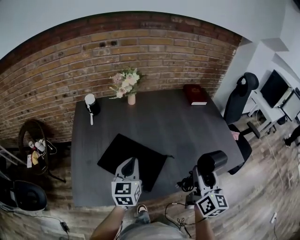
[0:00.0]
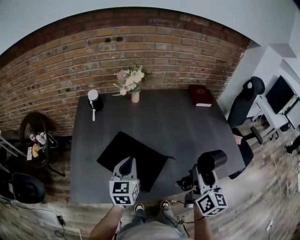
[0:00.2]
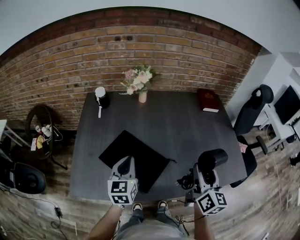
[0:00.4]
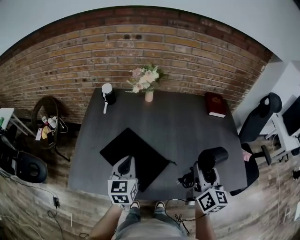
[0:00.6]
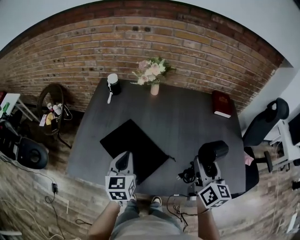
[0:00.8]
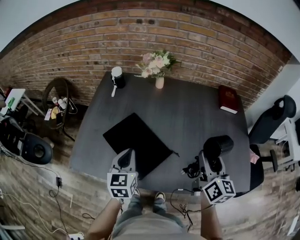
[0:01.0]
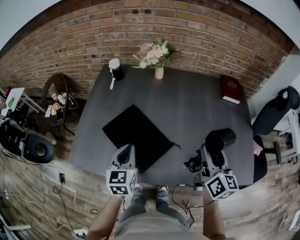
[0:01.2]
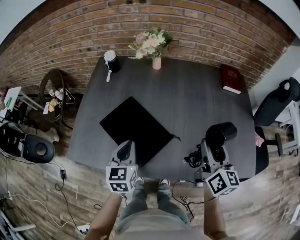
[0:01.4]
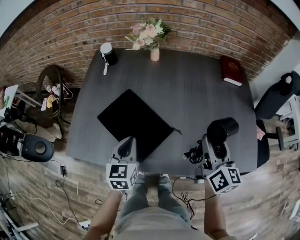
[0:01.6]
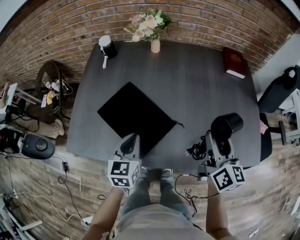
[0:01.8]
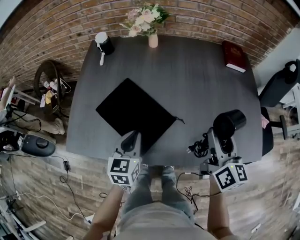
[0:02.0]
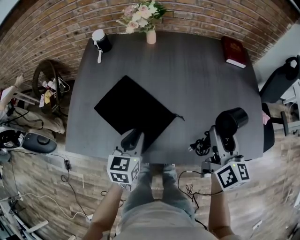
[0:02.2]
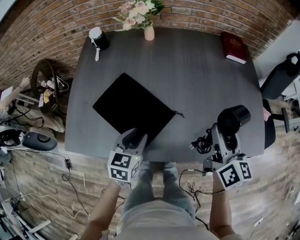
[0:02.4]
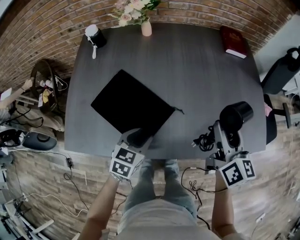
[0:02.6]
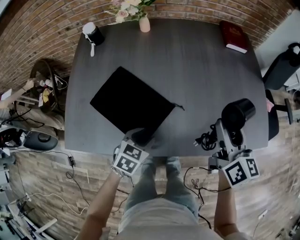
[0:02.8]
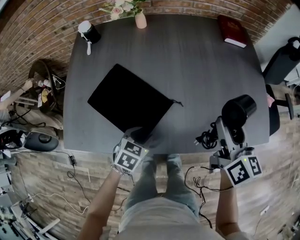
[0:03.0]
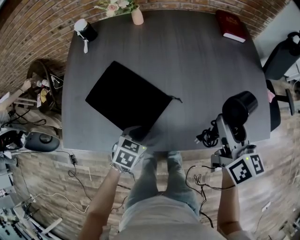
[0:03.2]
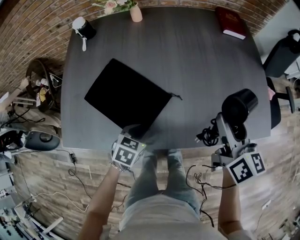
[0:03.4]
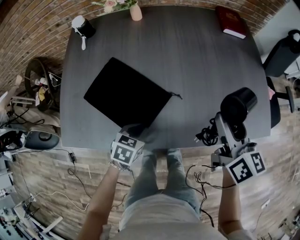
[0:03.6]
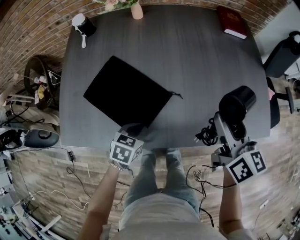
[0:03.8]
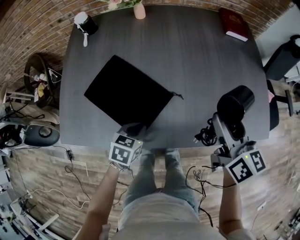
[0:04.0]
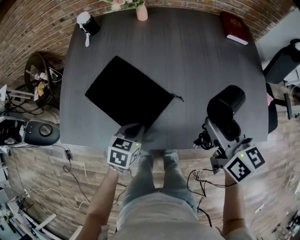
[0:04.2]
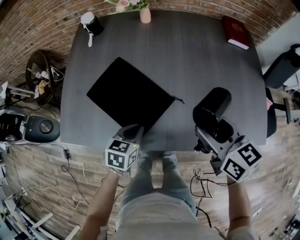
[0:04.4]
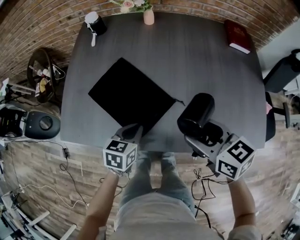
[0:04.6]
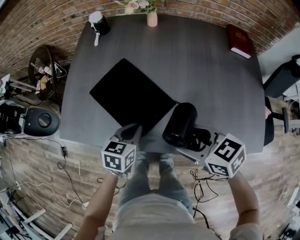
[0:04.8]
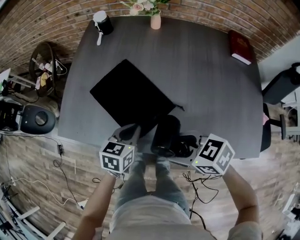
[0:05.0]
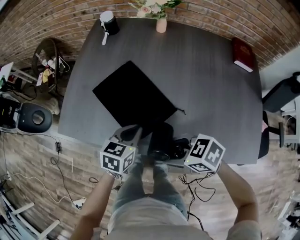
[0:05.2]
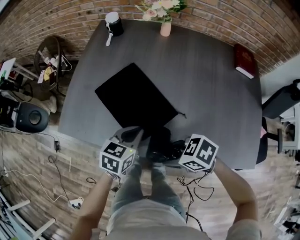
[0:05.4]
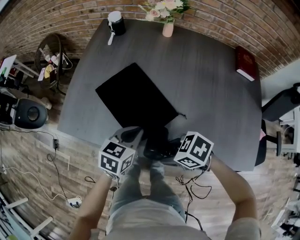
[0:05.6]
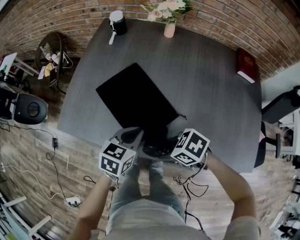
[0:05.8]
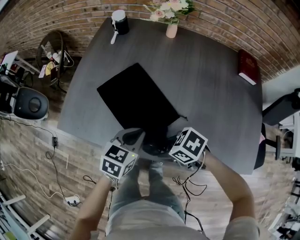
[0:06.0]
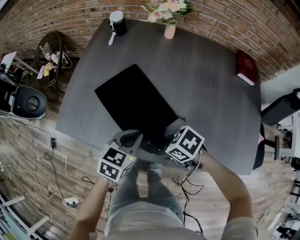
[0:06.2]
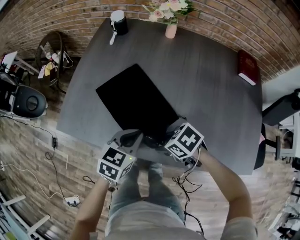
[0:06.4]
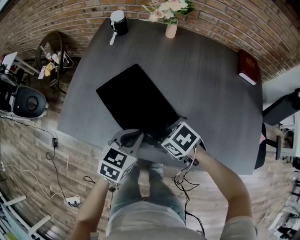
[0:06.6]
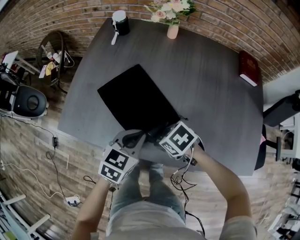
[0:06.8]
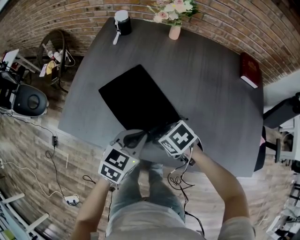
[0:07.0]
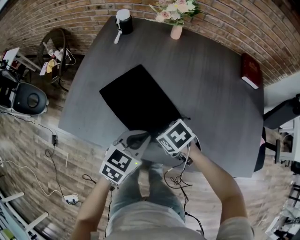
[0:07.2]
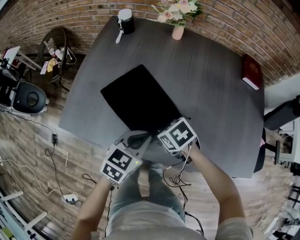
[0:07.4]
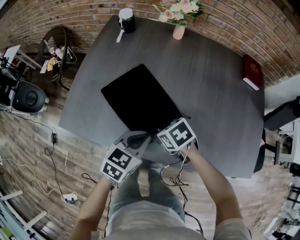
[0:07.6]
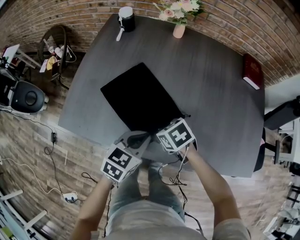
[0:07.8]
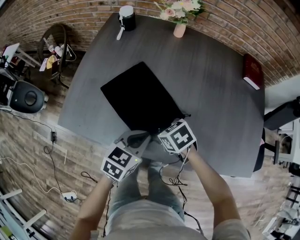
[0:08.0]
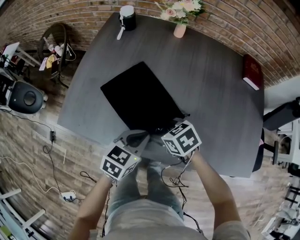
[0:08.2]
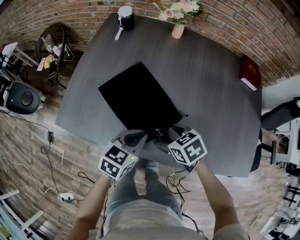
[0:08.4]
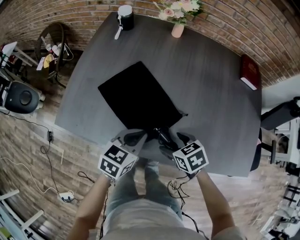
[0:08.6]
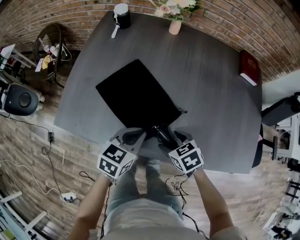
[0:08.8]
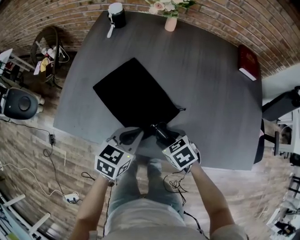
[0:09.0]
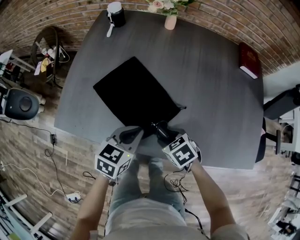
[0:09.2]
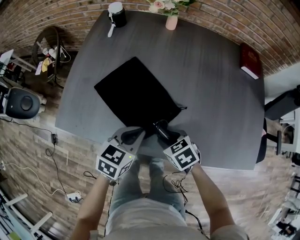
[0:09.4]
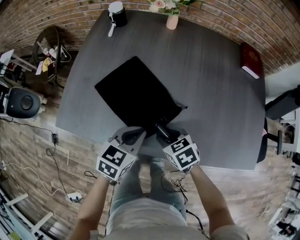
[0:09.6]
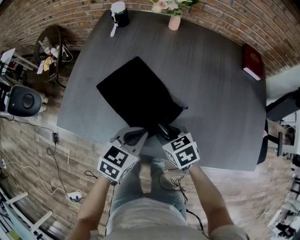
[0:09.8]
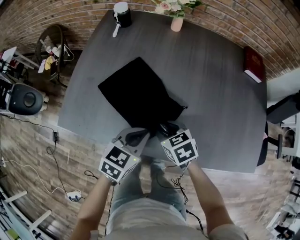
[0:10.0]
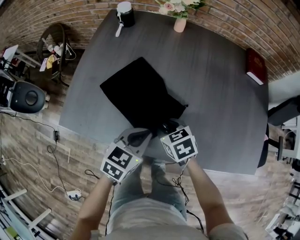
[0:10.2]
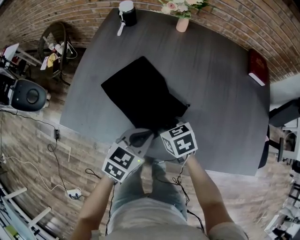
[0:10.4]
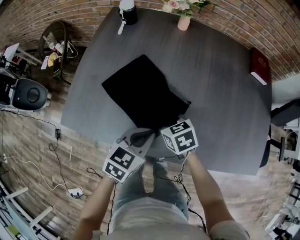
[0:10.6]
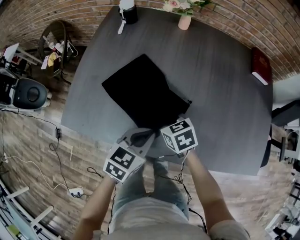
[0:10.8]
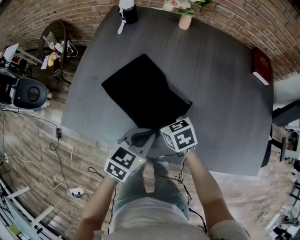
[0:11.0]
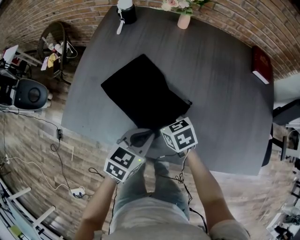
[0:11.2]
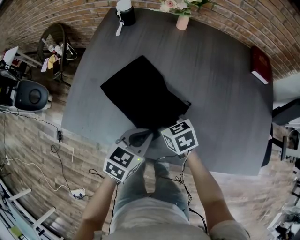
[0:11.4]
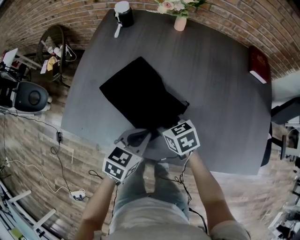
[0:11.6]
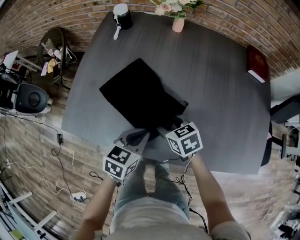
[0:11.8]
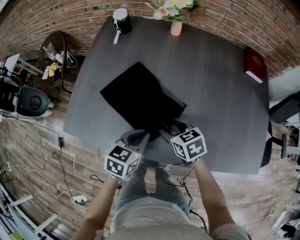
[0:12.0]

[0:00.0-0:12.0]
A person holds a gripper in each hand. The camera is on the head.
0:00.0 to 0:01.6: The left gripper travels downward by roughly 5 cm, and swivels roughly 20 degrees. The right gripper goes about 15 cm forward, to the right and downward, and rotates roughly 20 degrees.
0:01.6 to 0:03.0: The left gripper heads downward and to the right, covering some 15 cm, tilts its fingers about 30 degrees downward, and opens.
0:03.0 to 0:04.4: The right gripper heads to the left, covering roughly 10 cm, and turns by about 30 degrees. Meanwhile the left gripper rotates roughly 20 degrees, and closes its fingers.
0:04.4 to 0:06.0: The right gripper heads downward, covering roughly 15 cm, and swivels about 70 degrees, while the left gripper is displaced upward by roughly 5 cm.
0:06.0 to 0:07.6: The right gripper moves about 10 cm, and rotates about 20 degrees.
0:07.6 to 0:09.0: The right gripper goes some 5 cm backward.
0:09.0 to 0:10.4: The right gripper shifts approximately 10 cm forward.
0:10.4 to 0:12.0: The grippers stay close to where they were, moving slightly.

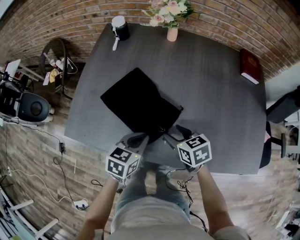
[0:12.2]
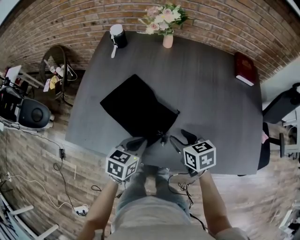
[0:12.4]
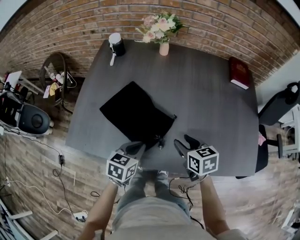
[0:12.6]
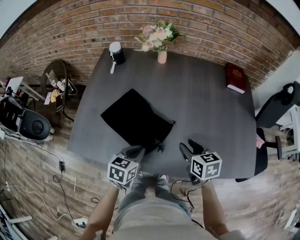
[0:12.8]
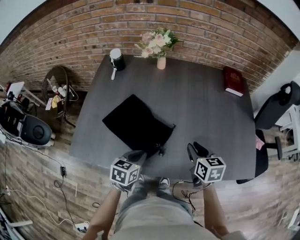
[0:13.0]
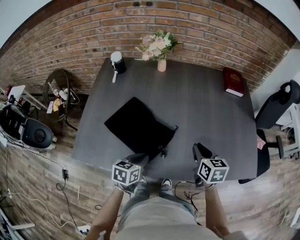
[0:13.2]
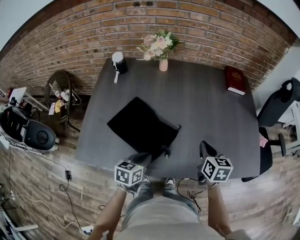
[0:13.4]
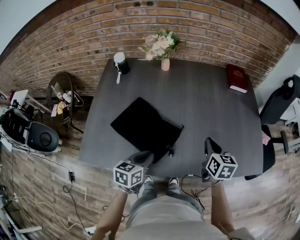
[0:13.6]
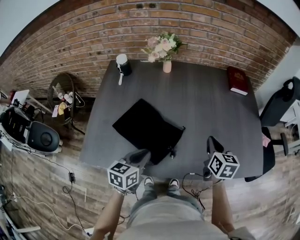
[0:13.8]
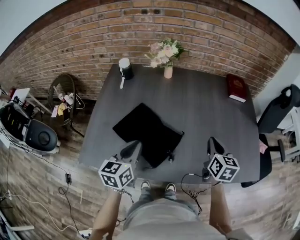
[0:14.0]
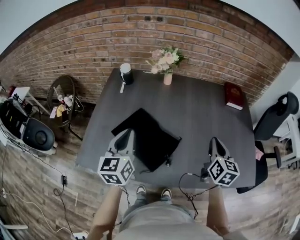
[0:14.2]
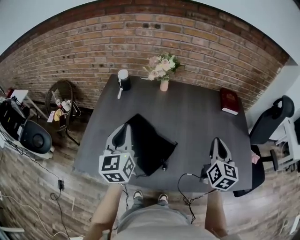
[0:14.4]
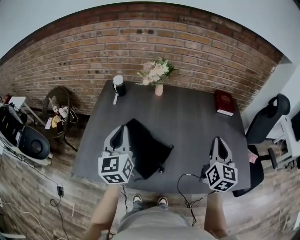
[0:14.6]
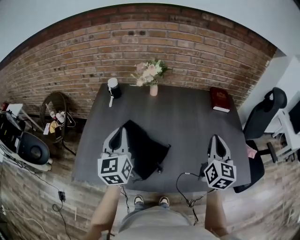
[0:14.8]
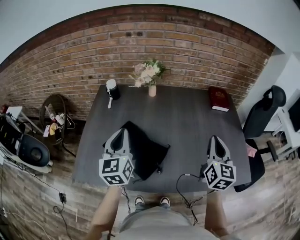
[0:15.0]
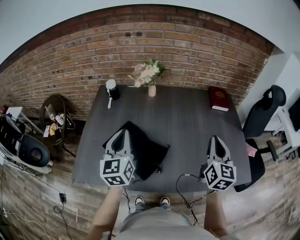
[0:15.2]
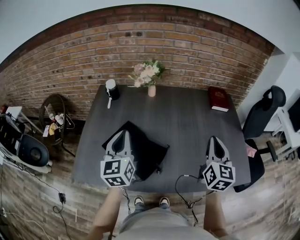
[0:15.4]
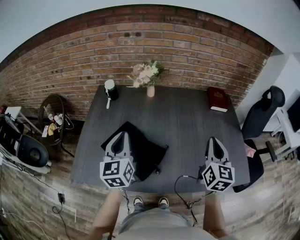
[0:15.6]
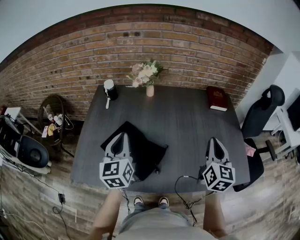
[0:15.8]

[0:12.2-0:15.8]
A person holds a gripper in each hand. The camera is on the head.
0:12.2 to 0:14.0: The right gripper goes some 20 cm to the right and upward, swivels approximately 50 degrees, and closes its fingers. The left gripper is displaced upward and to the left by approximately 15 cm, and rotates some 20 degrees.
0:14.0 to 0:15.8: The left gripper moves upward and forward, some 10 cm, and turns by approximately 20 degrees. The right gripper goes some 10 cm upward, and rotates roughly 20 degrees.

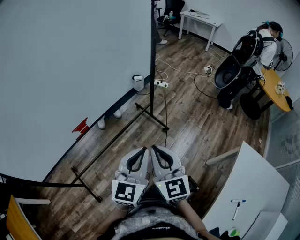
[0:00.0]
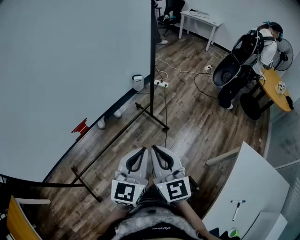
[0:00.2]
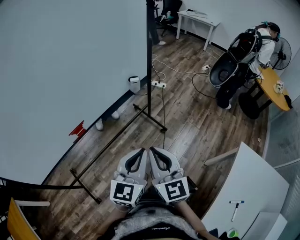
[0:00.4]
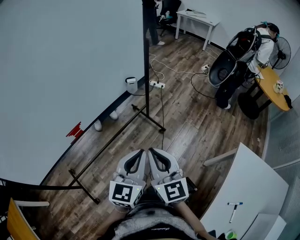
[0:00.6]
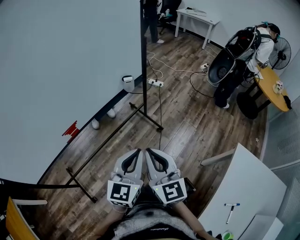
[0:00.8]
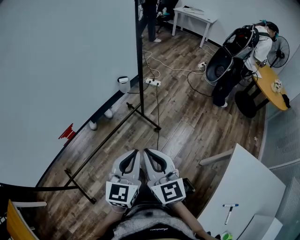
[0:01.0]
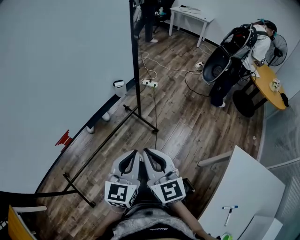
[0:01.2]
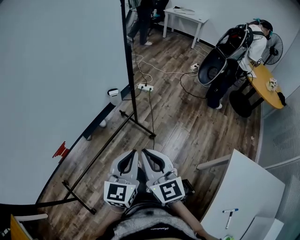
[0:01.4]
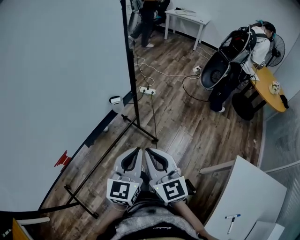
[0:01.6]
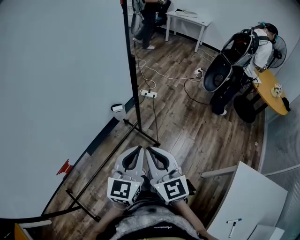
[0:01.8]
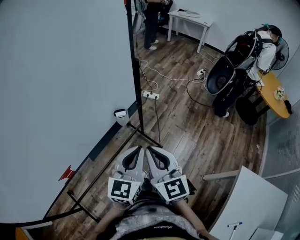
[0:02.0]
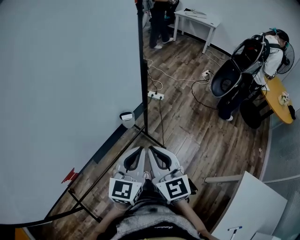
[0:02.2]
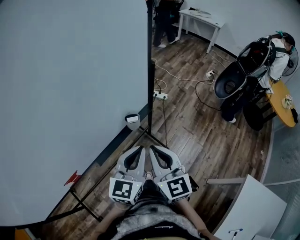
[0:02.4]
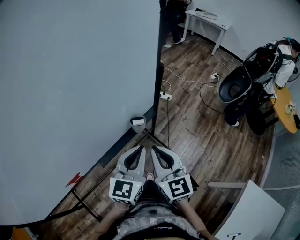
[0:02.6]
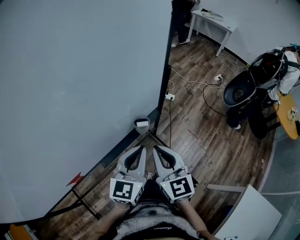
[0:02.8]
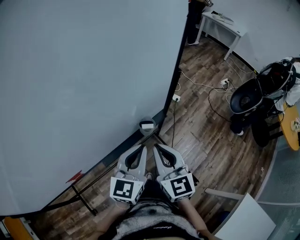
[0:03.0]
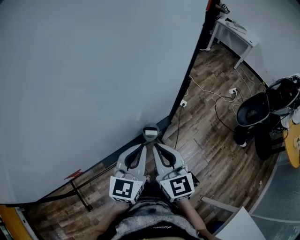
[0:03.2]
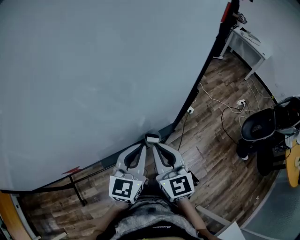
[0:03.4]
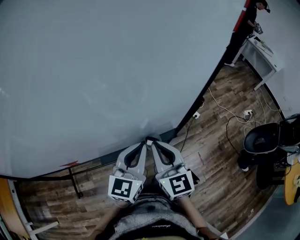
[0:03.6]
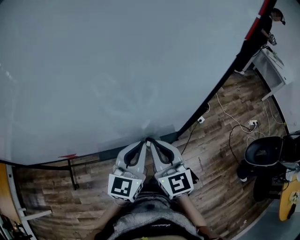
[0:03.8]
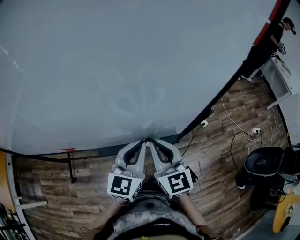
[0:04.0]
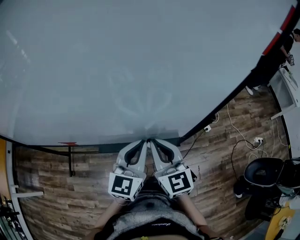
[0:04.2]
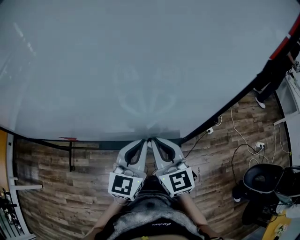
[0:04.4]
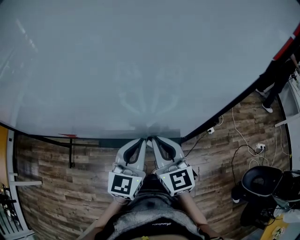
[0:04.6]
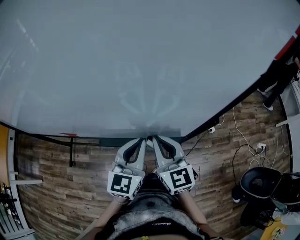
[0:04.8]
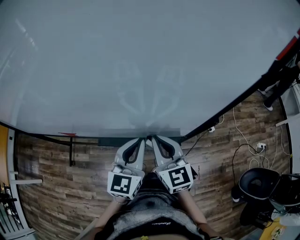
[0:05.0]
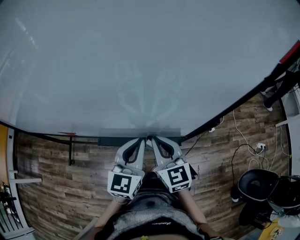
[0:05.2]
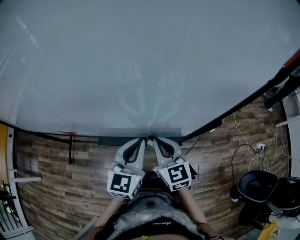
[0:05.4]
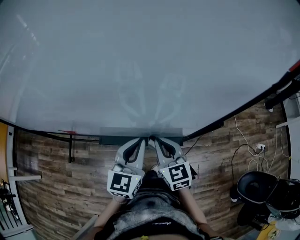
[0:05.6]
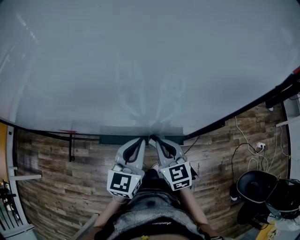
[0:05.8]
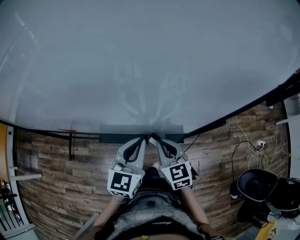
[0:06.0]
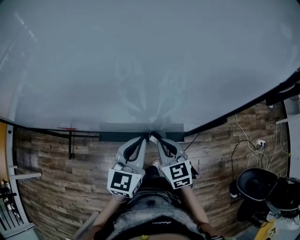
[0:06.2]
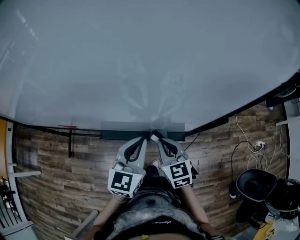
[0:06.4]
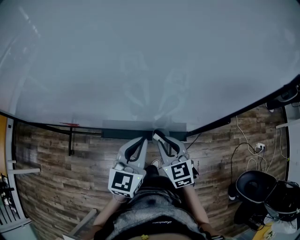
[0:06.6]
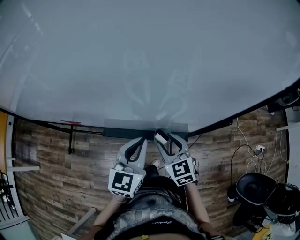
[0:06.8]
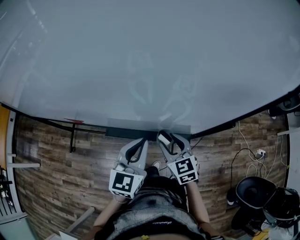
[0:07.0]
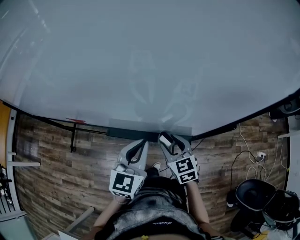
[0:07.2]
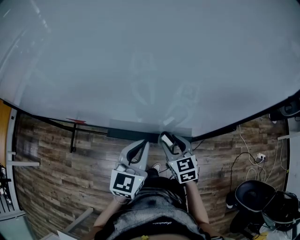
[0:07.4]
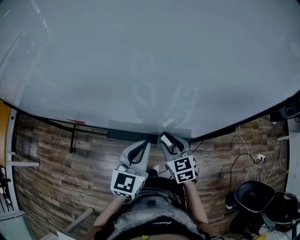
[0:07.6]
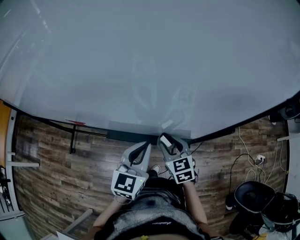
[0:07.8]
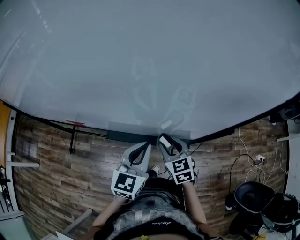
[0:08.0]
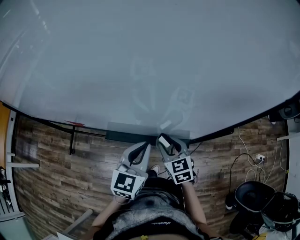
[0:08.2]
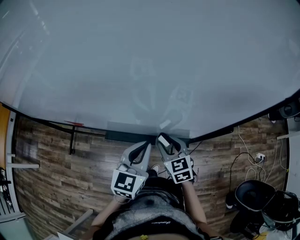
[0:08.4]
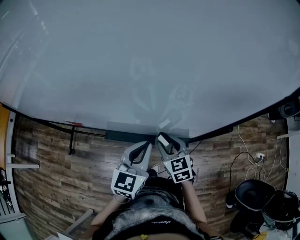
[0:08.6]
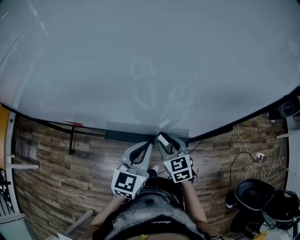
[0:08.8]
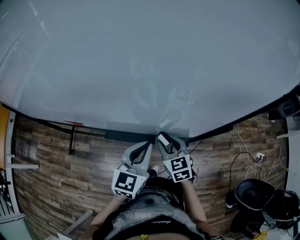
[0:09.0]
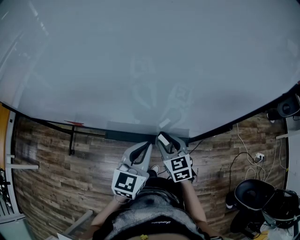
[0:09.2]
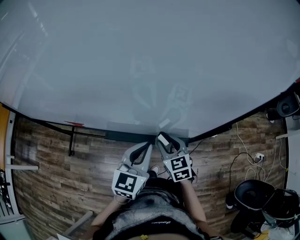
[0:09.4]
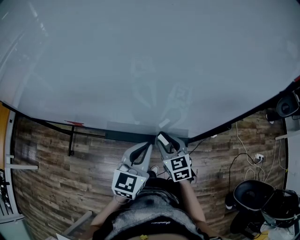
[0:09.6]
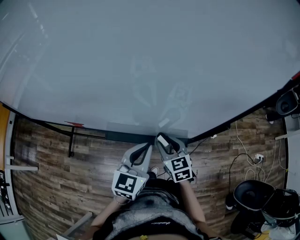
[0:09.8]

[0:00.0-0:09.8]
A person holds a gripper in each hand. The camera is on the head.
0:00.0 to 0:01.4: Both grippers move forward and to the right, roughly 15 cm.
0:01.4 to 0:02.8: The left gripper heads forward and to the left, covering about 25 cm, while the right gripper shifts some 25 cm forward.
0:02.8 to 0:04.2: The right gripper shifts by about 15 cm, and swivels about 40 degrees. Meanwhile the left gripper ends up roughly 15 cm from where it was, and turns by roughly 40 degrees.
0:04.2 to 0:05.6: The right gripper moves downward, roughly 10 cm.
0:05.6 to 0:07.0: The right gripper moves downward, about 5 cm, and opens its fingers.
0:07.0 to 0:09.8: The grippers stay close to where they were, moving slightly.
